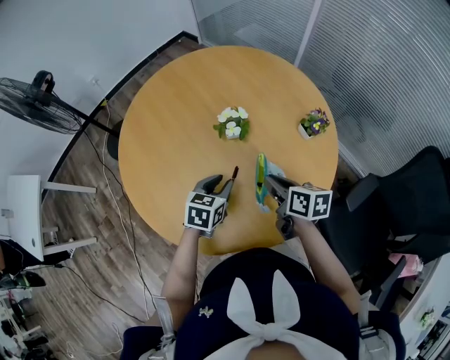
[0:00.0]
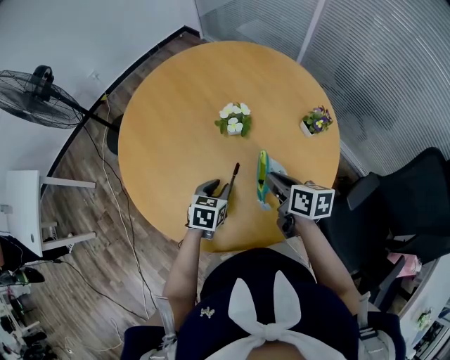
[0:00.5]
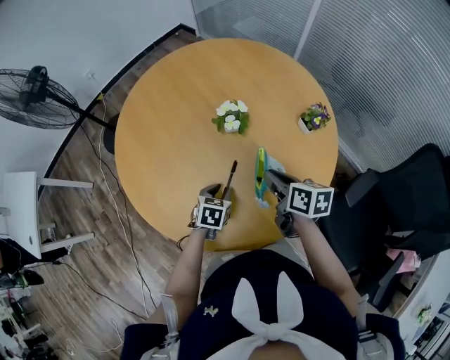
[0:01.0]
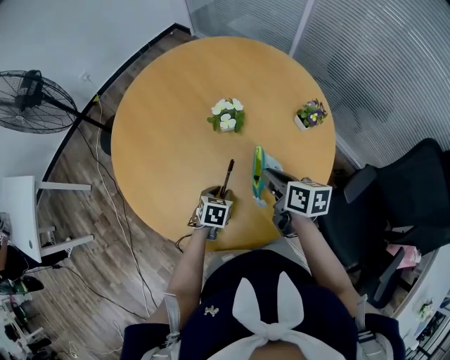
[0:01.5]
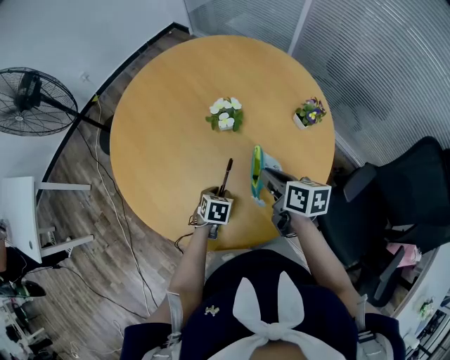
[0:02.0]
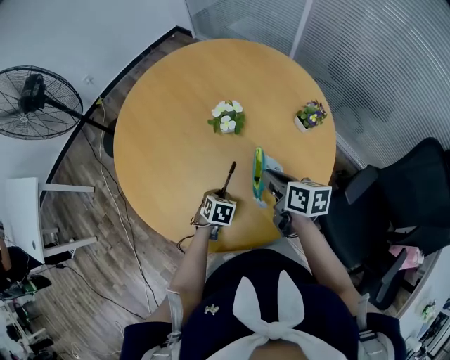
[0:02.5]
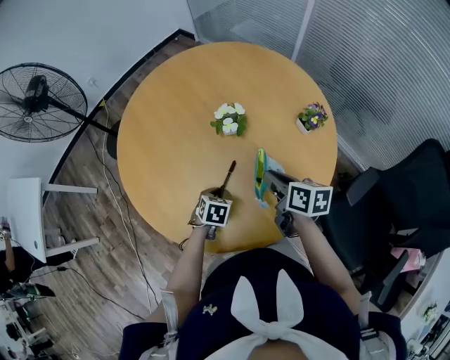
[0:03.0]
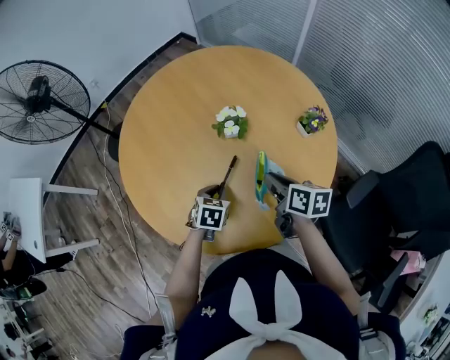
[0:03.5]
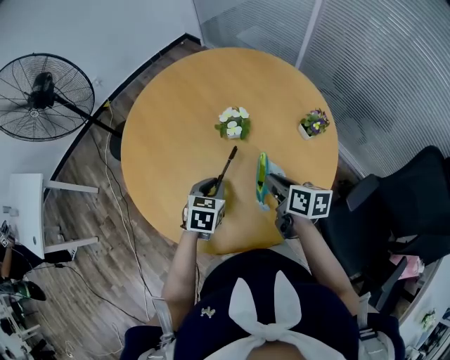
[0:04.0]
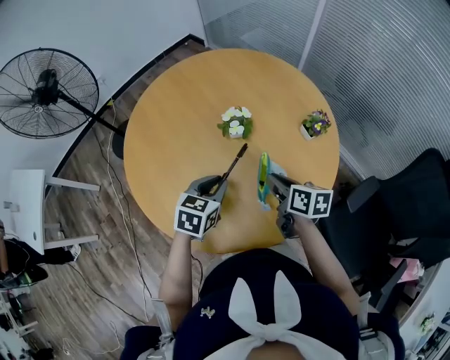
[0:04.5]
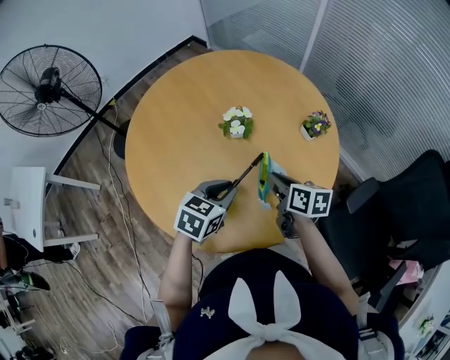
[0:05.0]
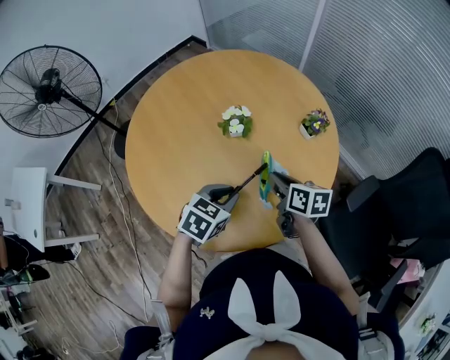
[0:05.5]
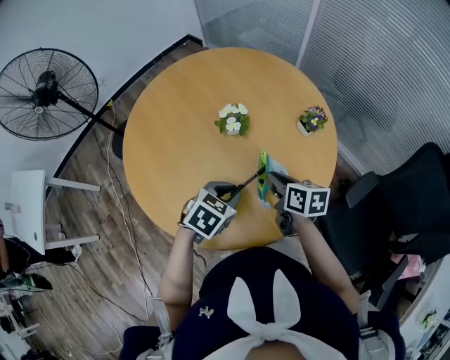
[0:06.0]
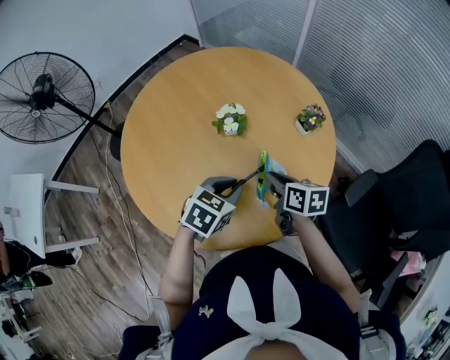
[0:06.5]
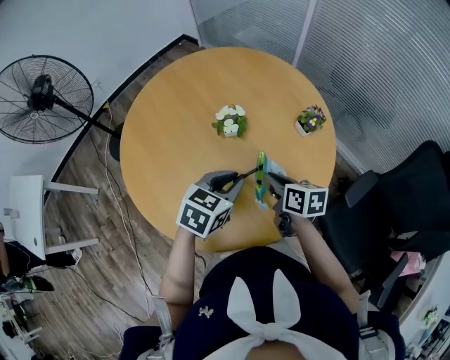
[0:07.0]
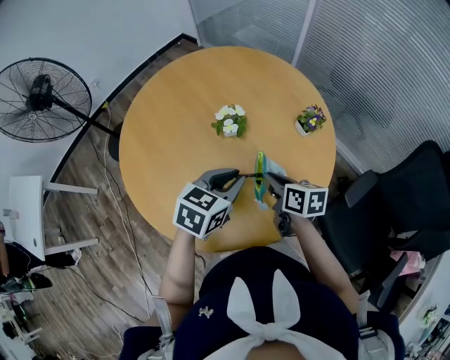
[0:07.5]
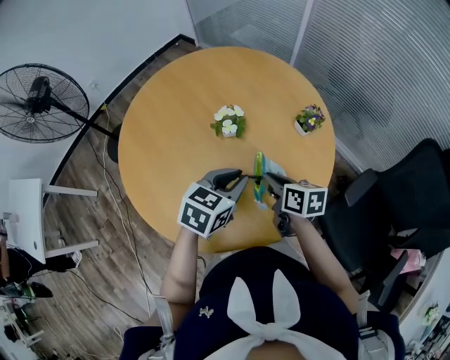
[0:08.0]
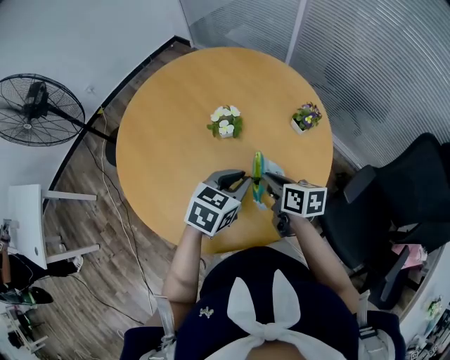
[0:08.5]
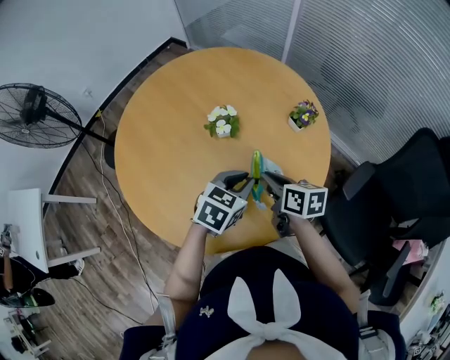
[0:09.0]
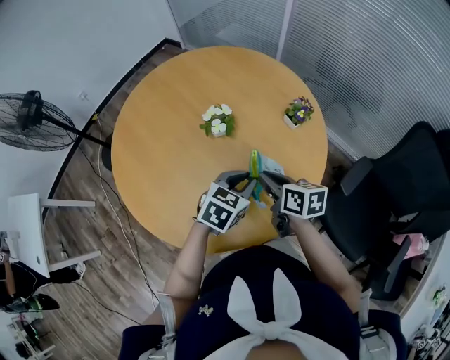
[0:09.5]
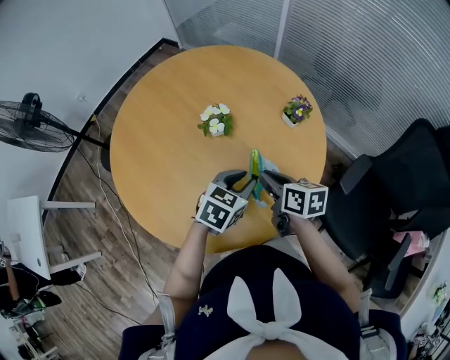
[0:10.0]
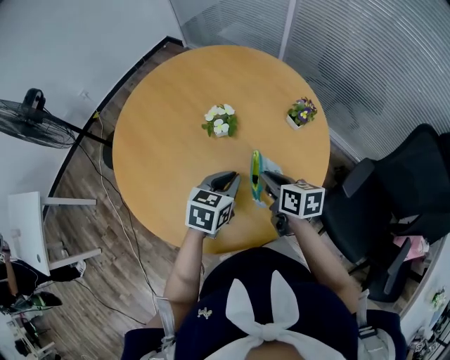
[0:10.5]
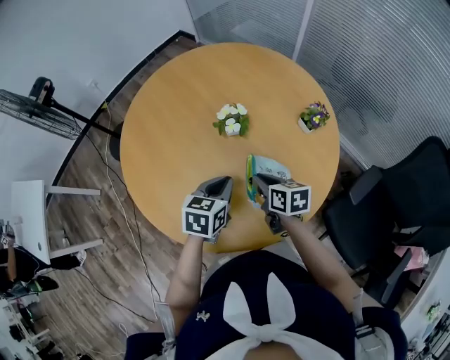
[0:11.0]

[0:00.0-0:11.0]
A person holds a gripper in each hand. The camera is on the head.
0:00.0 to 0:02.0: The left gripper goes about 15 cm downward, and turns by about 20 degrees.
0:02.0 to 0:03.5: The left gripper moves upward, roughly 5 cm.
0:03.5 to 0:05.5: The left gripper moves upward, about 10 cm, and swivels approximately 20 degrees.
0:05.5 to 0:07.5: The left gripper shifts about 5 cm upward.
0:07.5 to 0:09.0: The left gripper ends up about 5 cm from where it was.
0:09.0 to 0:11.0: The left gripper heads to the left, covering roughly 10 cm, and swivels approximately 20 degrees. Meanwhile the right gripper is displaced downward by roughly 5 cm.

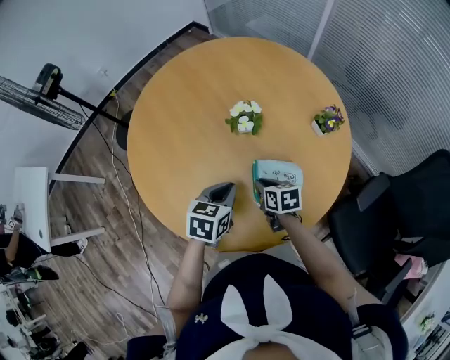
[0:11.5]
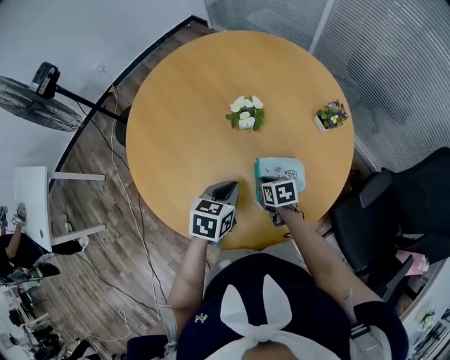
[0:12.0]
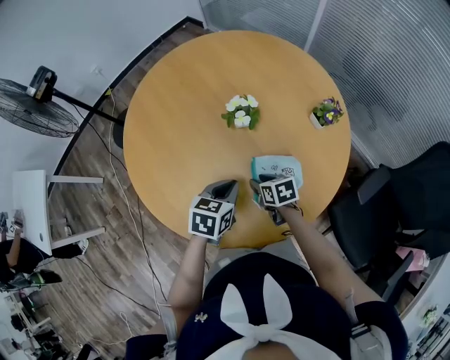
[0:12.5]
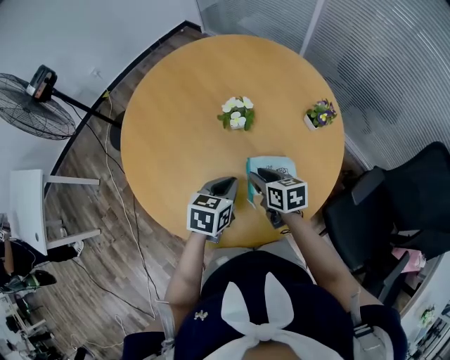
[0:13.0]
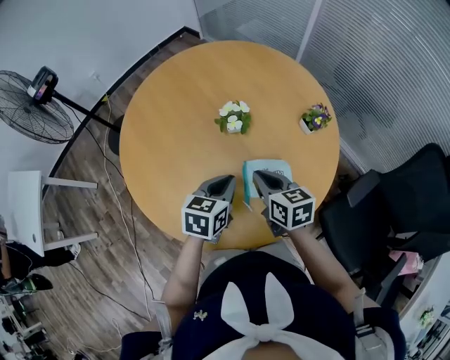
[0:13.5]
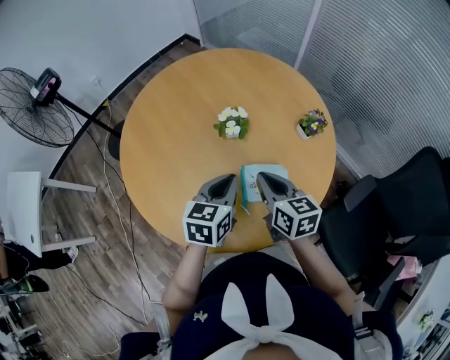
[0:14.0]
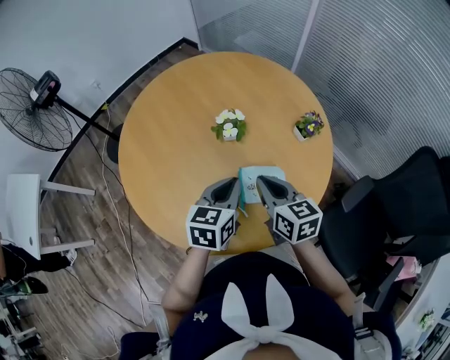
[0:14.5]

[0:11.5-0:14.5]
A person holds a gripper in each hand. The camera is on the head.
0:11.5 to 0:13.0: The right gripper moves upward, about 5 cm, and opens its fingers.
0:13.0 to 0:14.5: The right gripper goes roughly 15 cm upward, and closes. The left gripper heads upward, covering some 10 cm.

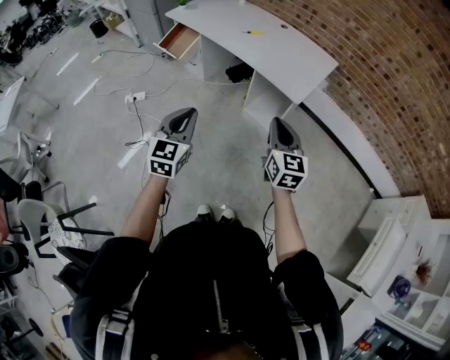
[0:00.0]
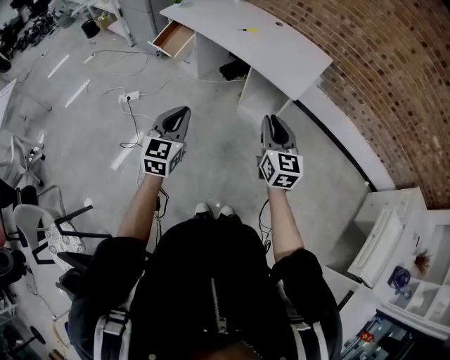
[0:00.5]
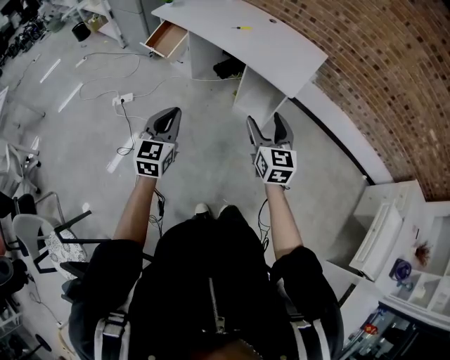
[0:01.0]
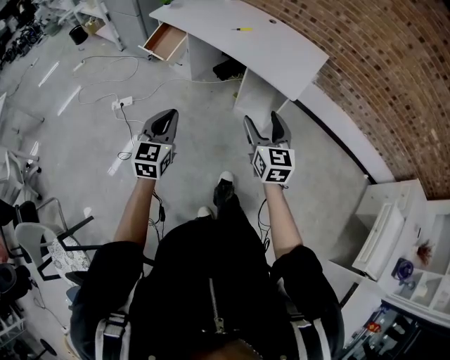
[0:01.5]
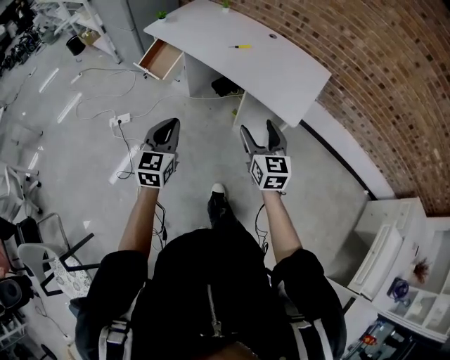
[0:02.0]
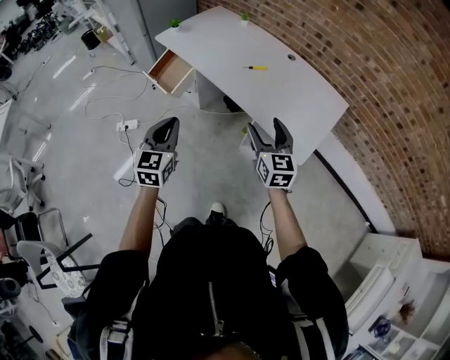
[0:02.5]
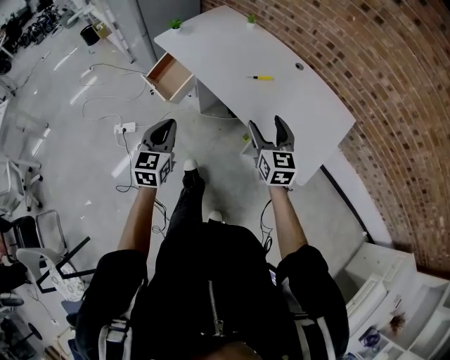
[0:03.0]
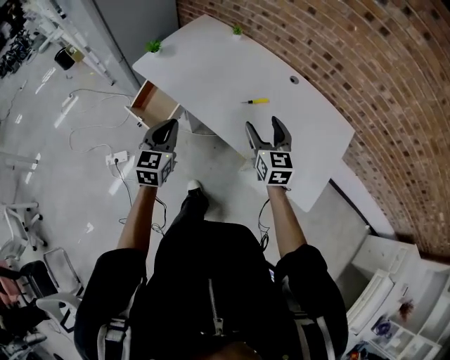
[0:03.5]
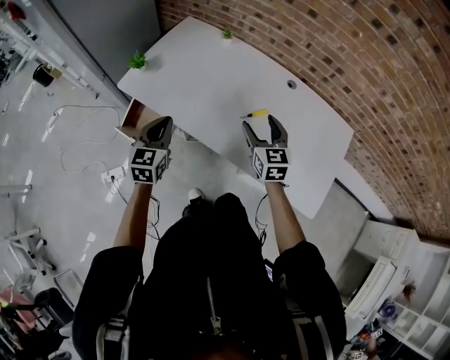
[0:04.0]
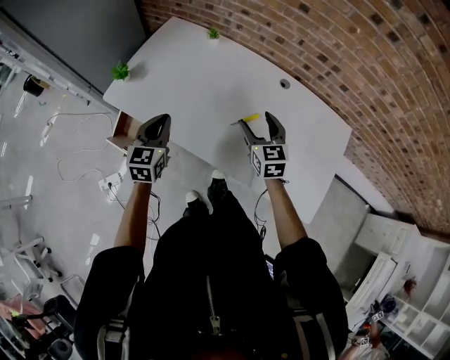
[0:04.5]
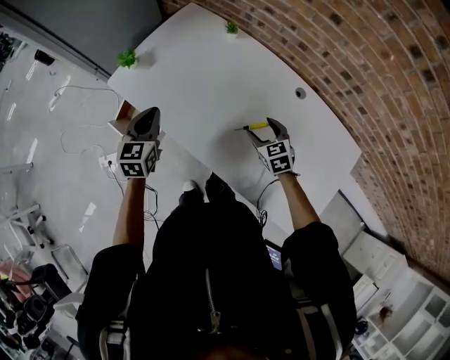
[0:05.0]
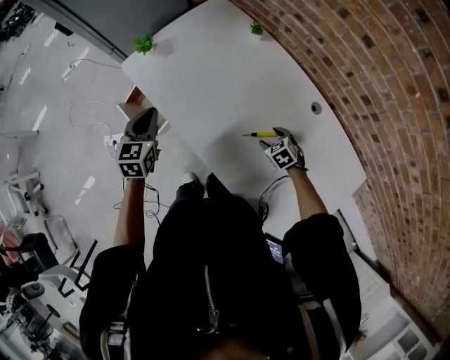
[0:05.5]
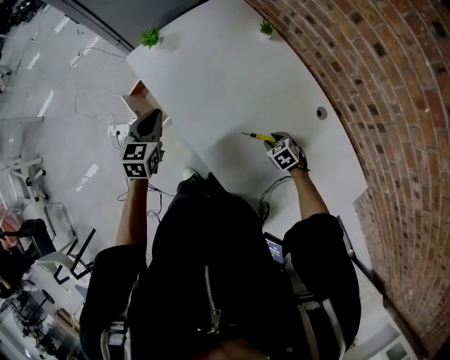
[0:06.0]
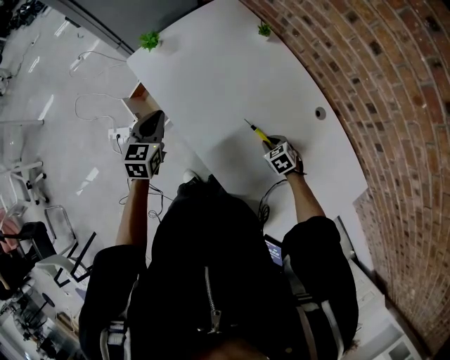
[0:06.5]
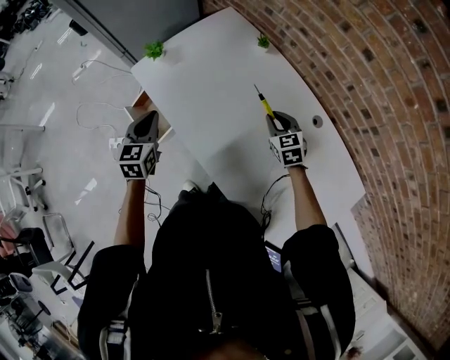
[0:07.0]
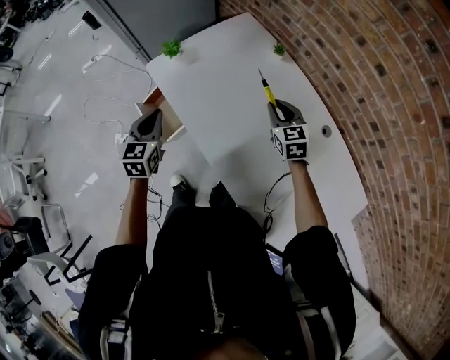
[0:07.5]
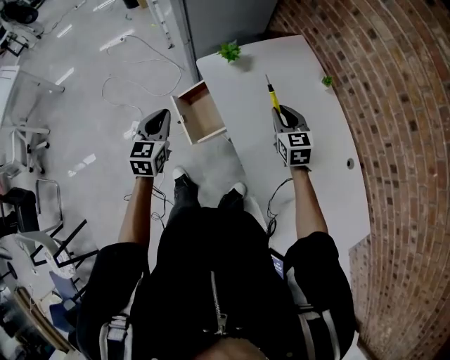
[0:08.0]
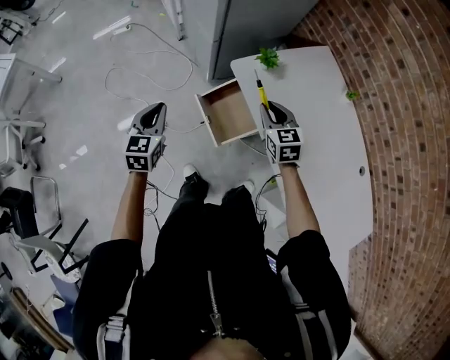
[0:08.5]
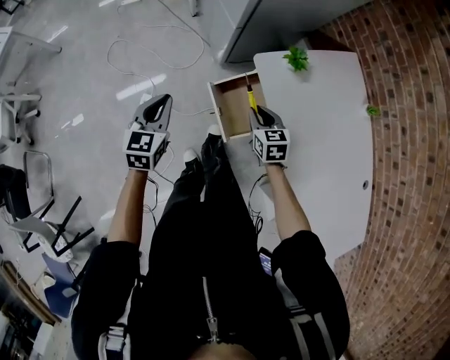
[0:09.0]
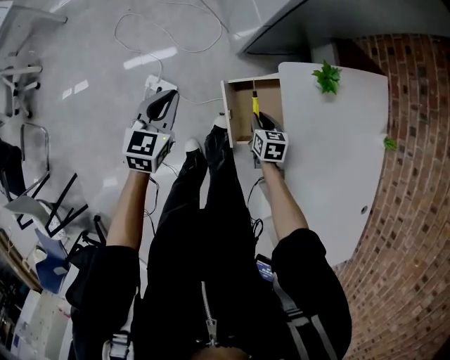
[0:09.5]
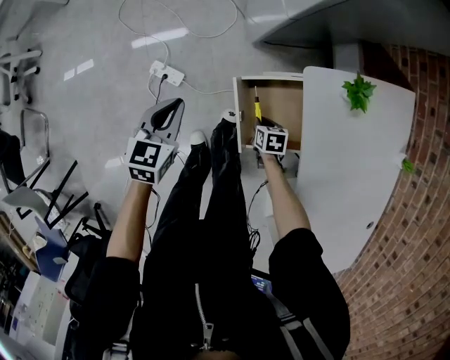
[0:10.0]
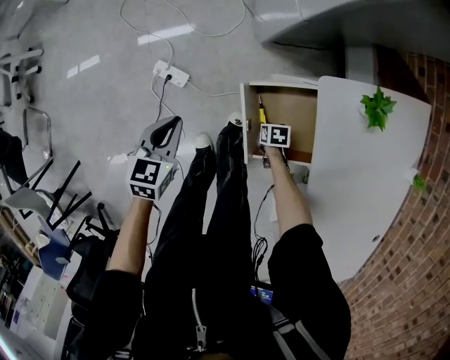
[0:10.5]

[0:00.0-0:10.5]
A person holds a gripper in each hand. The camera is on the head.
0:00.0 to 0:02.0: The grippers both shift forward and to the left by about 15 cm. The right gripper opens up.
0:02.0 to 0:04.0: The two grippers travel together, forward, about 60 cm.
0:04.0 to 0:06.5: The left gripper ends up approximately 10 cm from where it was, and rotates roughly 30 degrees; the right gripper goes approximately 25 cm downward, points its fingers roughly 40 degrees further downward, and closes its fingers.
0:06.5 to 0:08.5: Both grippers are carried to the left, some 40 cm. The right gripper is displaced upward by some 20 cm, and tilts its fingers roughly 30 degrees upward.
0:08.5 to 0:10.5: The right gripper is displaced downward by approximately 50 cm, and angles its fingers downward, by about 40 degrees. Meanwhile the left gripper moves downward, some 25 cm, and rotates about 20 degrees.

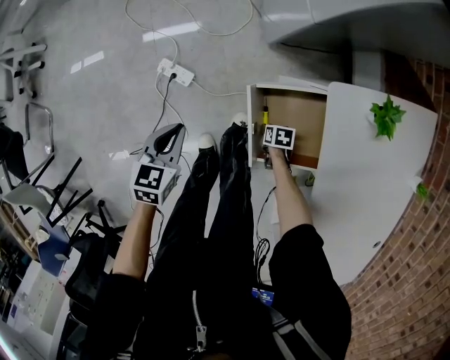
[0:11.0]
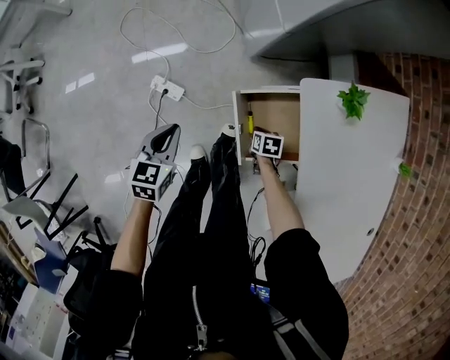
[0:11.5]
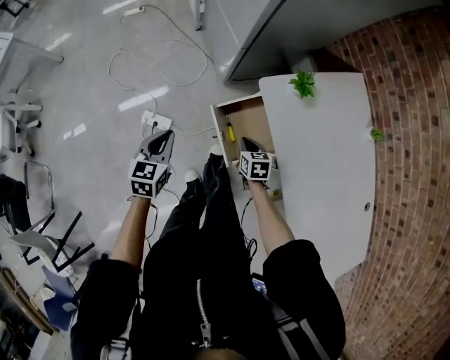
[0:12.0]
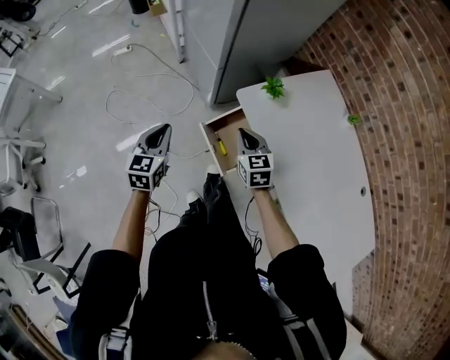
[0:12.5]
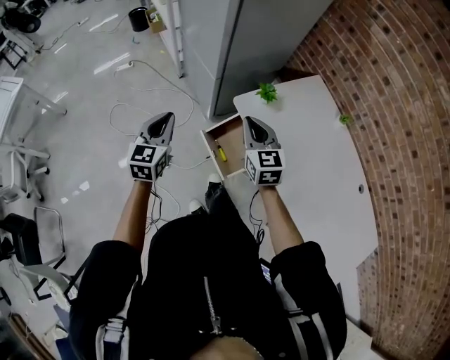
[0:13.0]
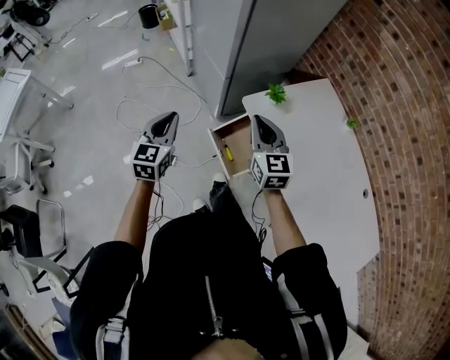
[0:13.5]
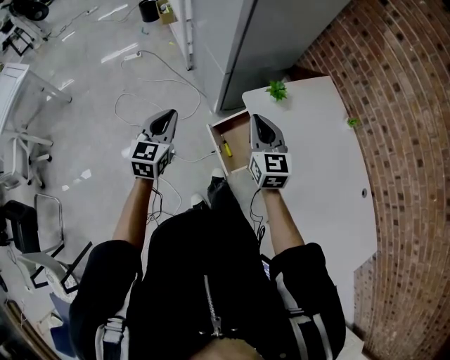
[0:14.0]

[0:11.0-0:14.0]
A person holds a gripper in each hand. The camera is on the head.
0:11.0 to 0:12.5: The left gripper heads upward, covering roughly 25 cm, and turns by some 30 degrees. Meanwhile the right gripper shifts about 50 cm upward, and tilts its fingers some 40 degrees upward.
0:12.5 to 0:14.0: The right gripper shifts approximately 15 cm upward; the left gripper moves upward, some 5 cm.
